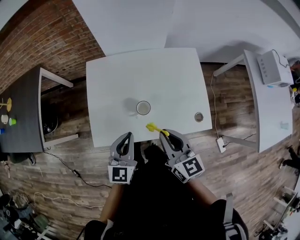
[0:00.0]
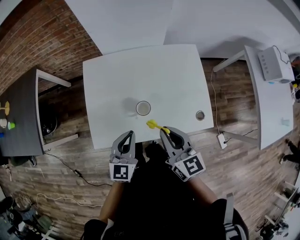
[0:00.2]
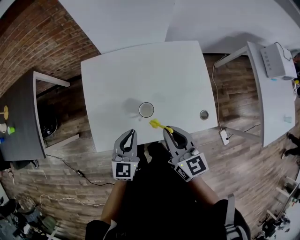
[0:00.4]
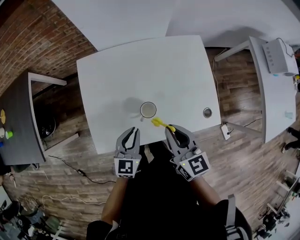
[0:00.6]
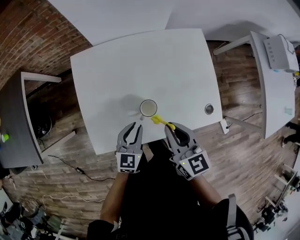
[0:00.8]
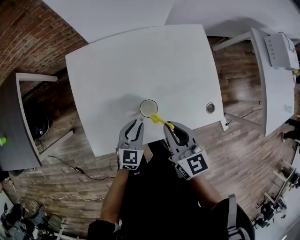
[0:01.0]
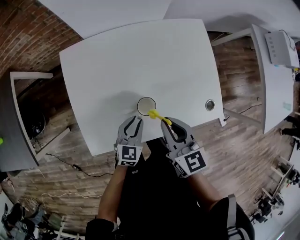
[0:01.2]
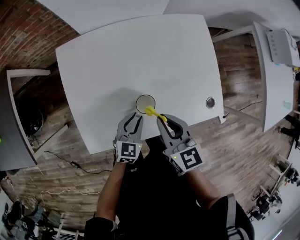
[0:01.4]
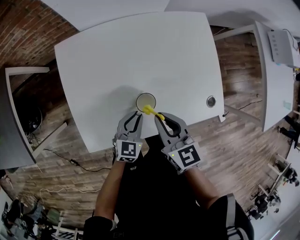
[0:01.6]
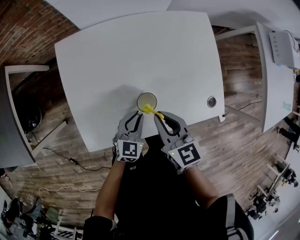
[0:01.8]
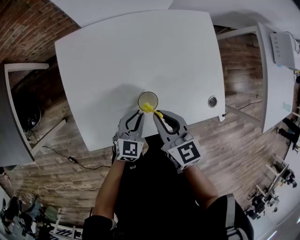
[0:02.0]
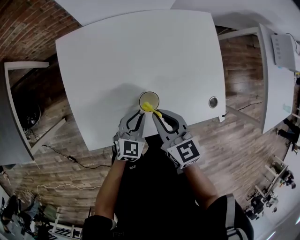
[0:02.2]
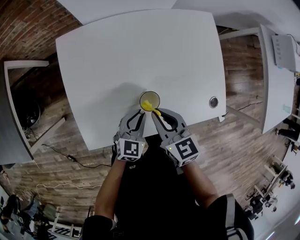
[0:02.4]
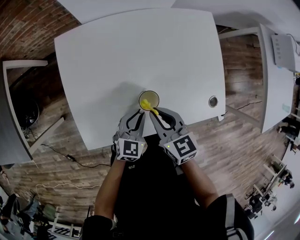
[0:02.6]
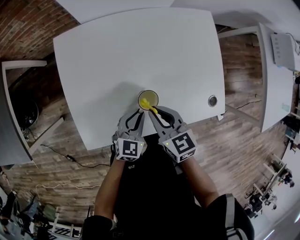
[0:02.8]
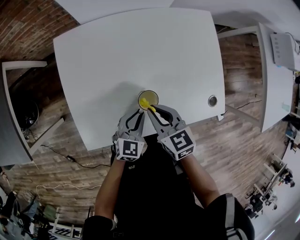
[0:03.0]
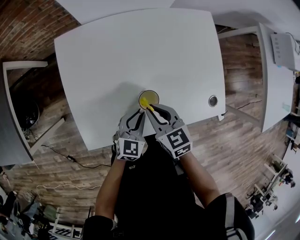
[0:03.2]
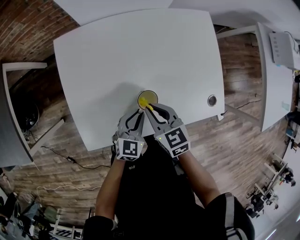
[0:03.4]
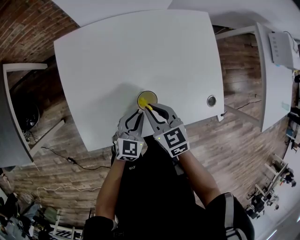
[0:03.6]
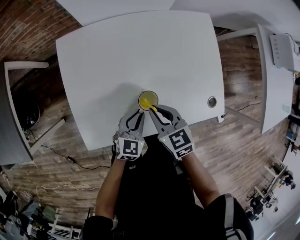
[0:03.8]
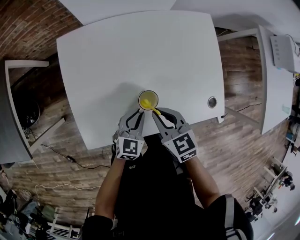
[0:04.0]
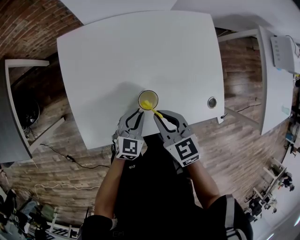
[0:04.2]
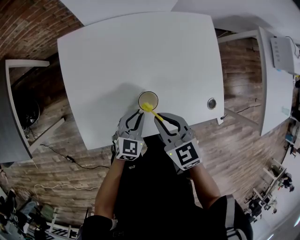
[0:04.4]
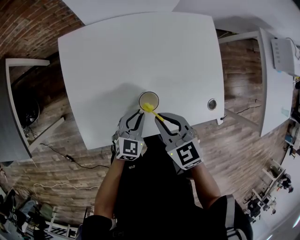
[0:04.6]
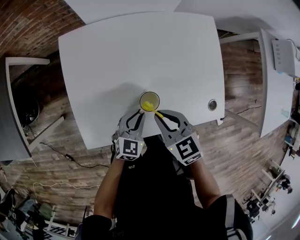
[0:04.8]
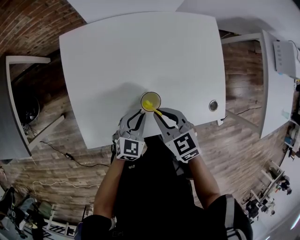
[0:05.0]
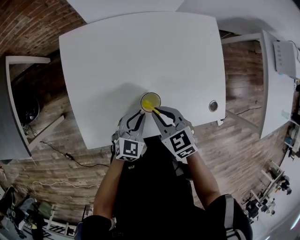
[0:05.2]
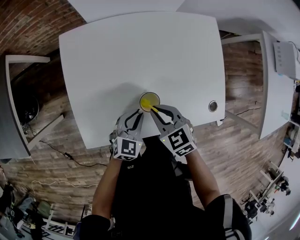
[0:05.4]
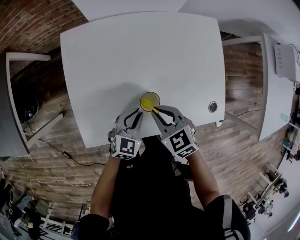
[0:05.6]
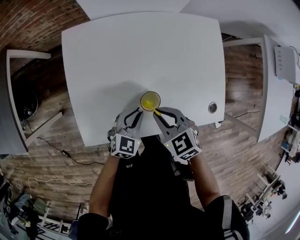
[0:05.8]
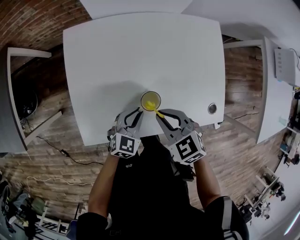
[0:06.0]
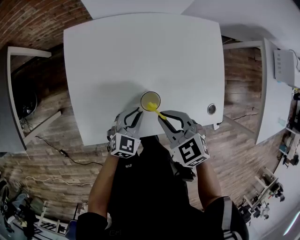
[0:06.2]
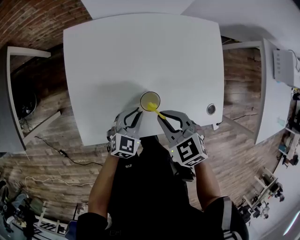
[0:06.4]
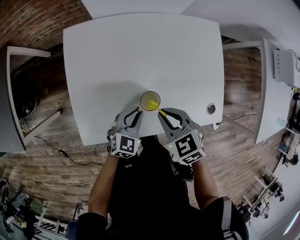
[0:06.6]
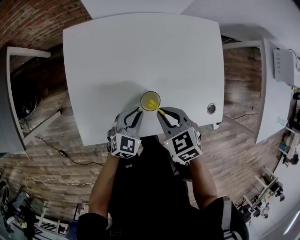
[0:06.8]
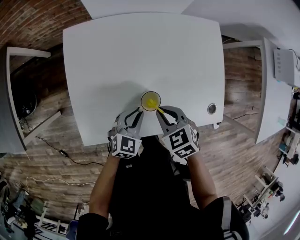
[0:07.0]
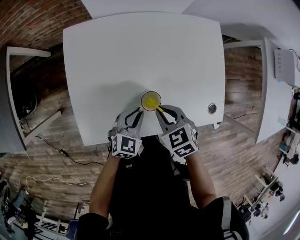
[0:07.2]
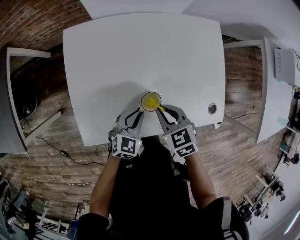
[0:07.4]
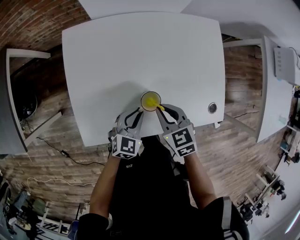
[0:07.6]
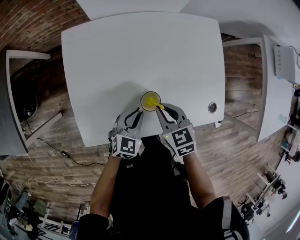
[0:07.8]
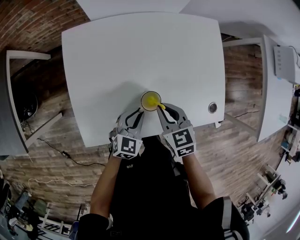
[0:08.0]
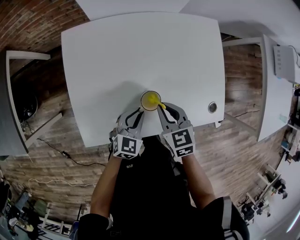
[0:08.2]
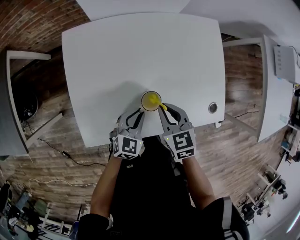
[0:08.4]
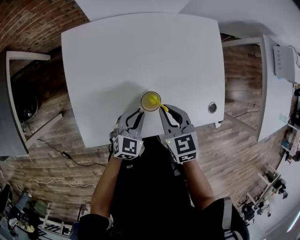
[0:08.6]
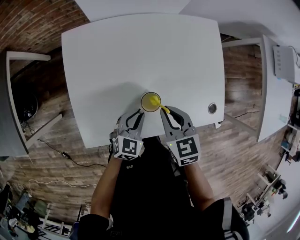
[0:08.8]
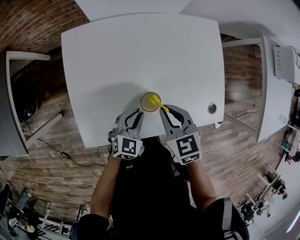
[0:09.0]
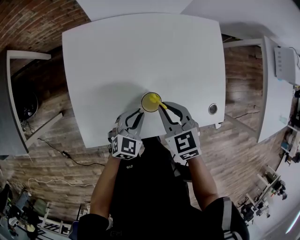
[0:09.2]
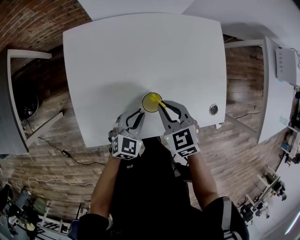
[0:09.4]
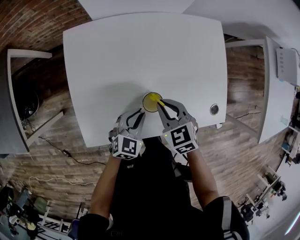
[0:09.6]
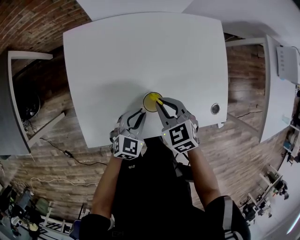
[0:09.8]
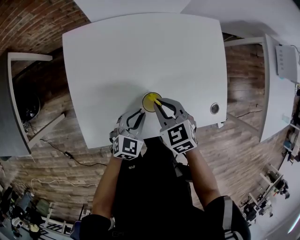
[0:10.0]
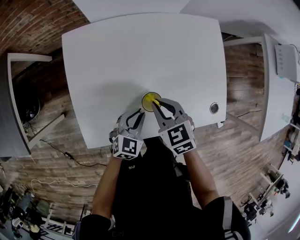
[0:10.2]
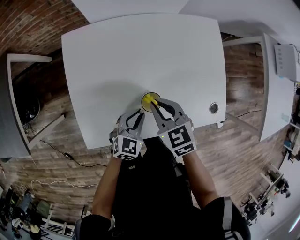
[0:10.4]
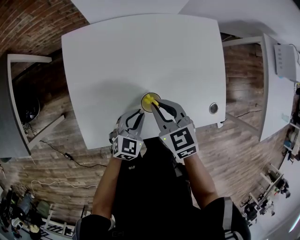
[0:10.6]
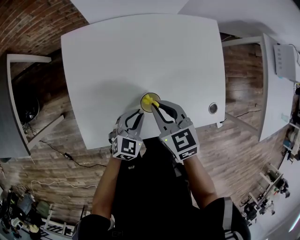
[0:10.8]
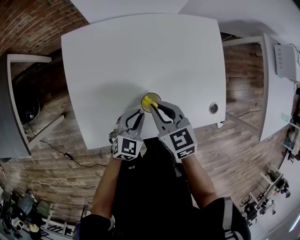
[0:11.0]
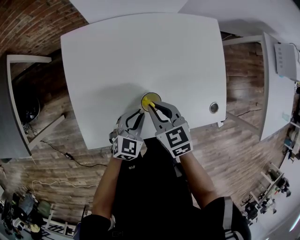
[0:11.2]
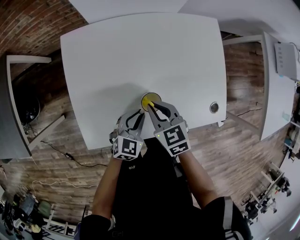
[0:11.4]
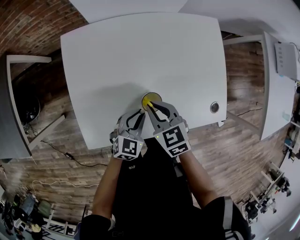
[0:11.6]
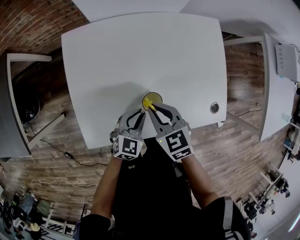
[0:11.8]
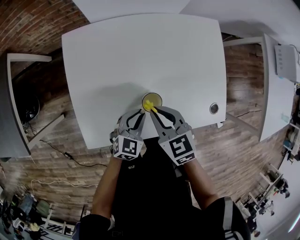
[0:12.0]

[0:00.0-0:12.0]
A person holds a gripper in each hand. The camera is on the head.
0:00.0 to 0:01.6: The left gripper is displaced downward by about 20 cm, and turns by about 30 degrees. The right gripper travels downward and forward by roughly 15 cm.
0:01.6 to 0:03.0: The right gripper travels downward by approximately 5 cm.
0:03.0 to 0:04.4: There are only small adjustments of the grippers.
0:04.4 to 0:06.0: There are only small adjustments of the grippers.
0:06.0 to 0:07.6: The grippers make only small movements.
0:07.6 to 0:10.4: The grippers make only small movements.
0:10.4 to 0:12.0: There are only small adjustments of the grippers.

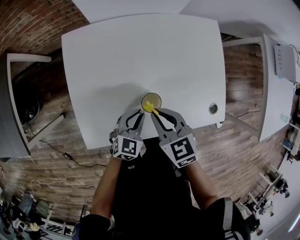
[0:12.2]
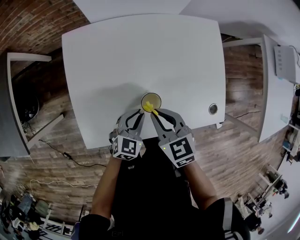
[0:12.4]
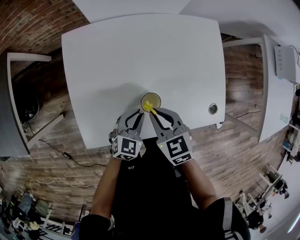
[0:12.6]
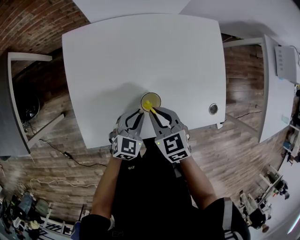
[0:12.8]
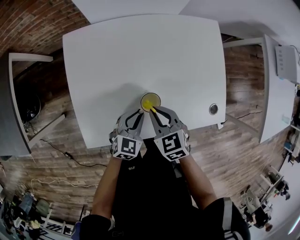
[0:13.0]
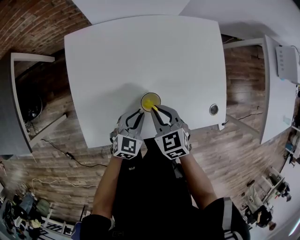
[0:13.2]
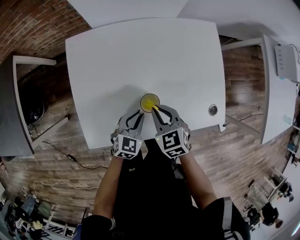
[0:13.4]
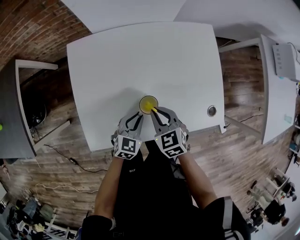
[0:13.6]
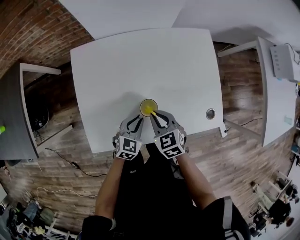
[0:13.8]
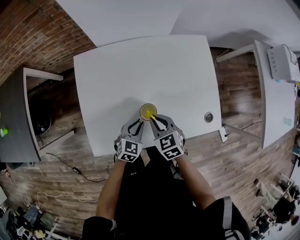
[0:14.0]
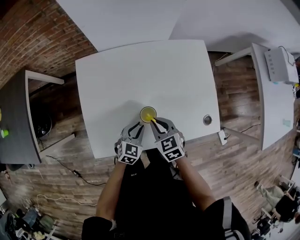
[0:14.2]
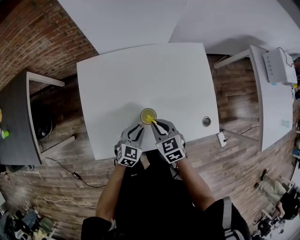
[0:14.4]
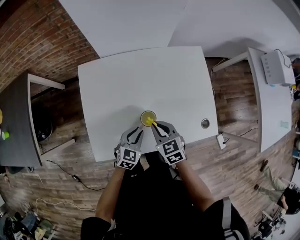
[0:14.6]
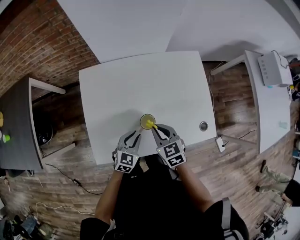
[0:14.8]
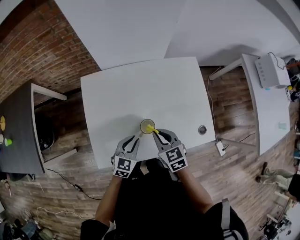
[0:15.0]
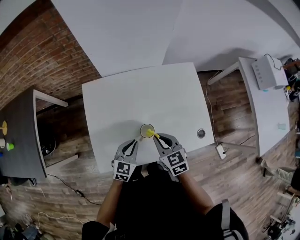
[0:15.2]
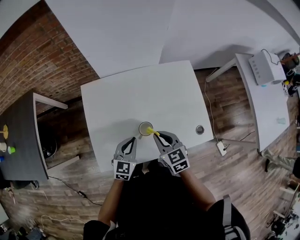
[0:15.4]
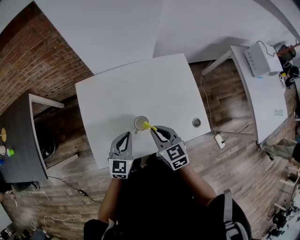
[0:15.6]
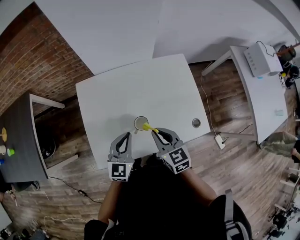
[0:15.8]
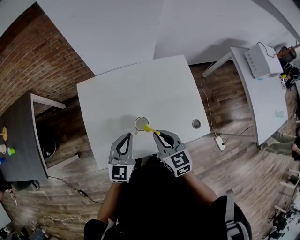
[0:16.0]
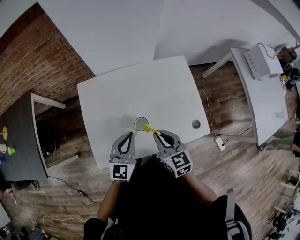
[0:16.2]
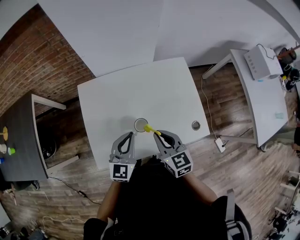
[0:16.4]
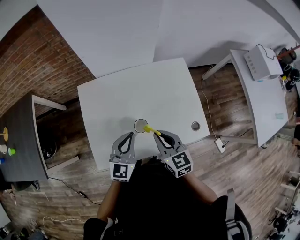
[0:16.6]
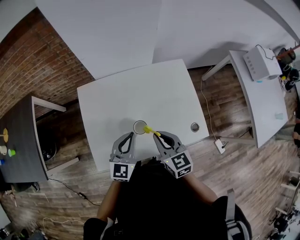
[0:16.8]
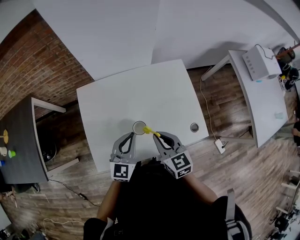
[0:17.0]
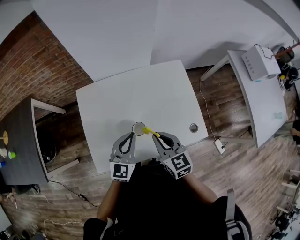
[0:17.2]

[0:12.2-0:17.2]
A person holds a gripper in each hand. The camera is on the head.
0:12.2 to 0:13.8: The right gripper heads downward, covering some 5 cm.
0:13.8 to 0:15.6: The two grippers go approximately 15 cm upward.
0:15.6 to 0:17.2: The right gripper shifts by about 5 cm. The left gripper goes some 5 cm upward.

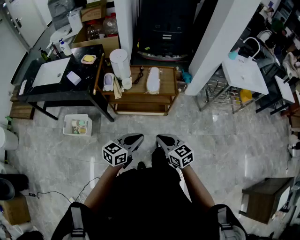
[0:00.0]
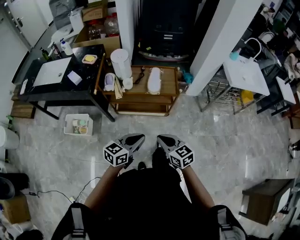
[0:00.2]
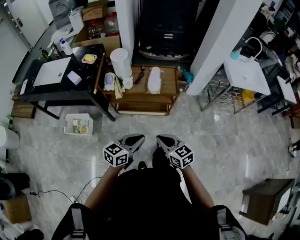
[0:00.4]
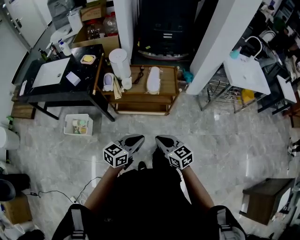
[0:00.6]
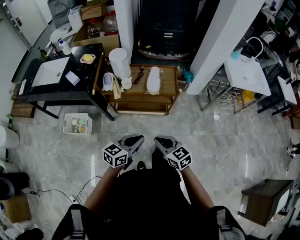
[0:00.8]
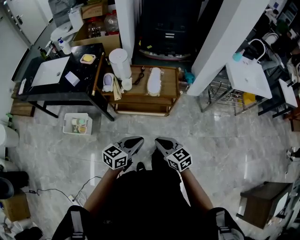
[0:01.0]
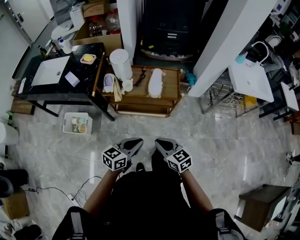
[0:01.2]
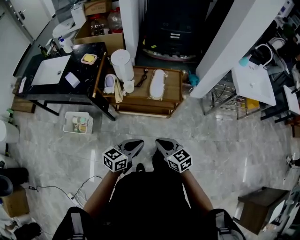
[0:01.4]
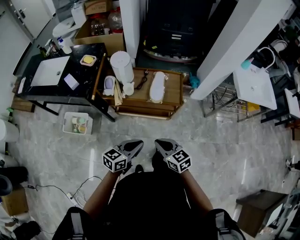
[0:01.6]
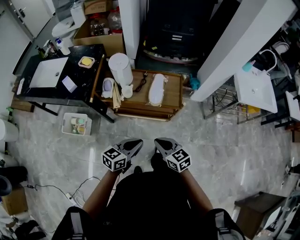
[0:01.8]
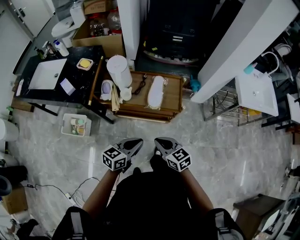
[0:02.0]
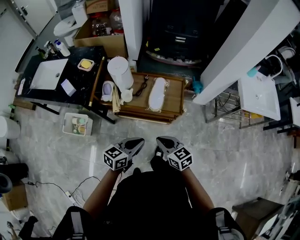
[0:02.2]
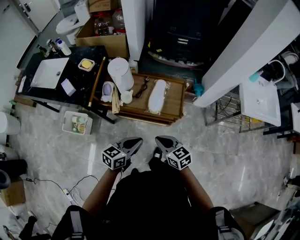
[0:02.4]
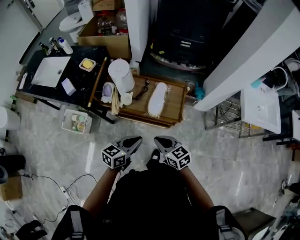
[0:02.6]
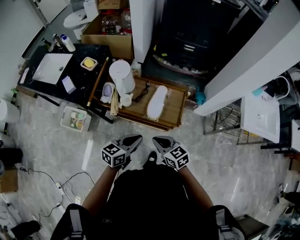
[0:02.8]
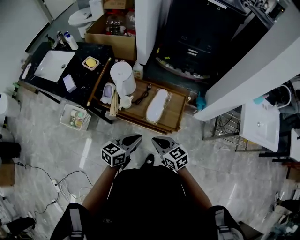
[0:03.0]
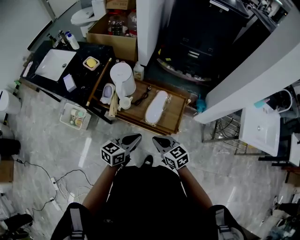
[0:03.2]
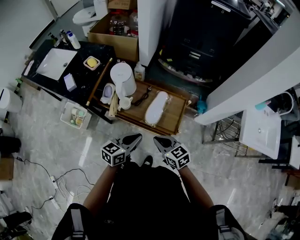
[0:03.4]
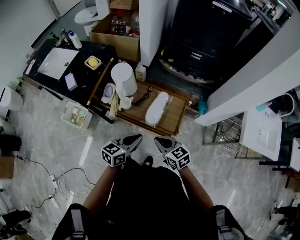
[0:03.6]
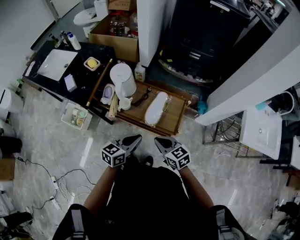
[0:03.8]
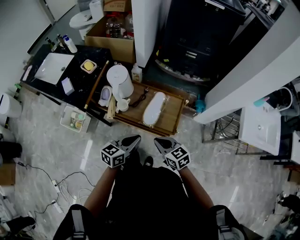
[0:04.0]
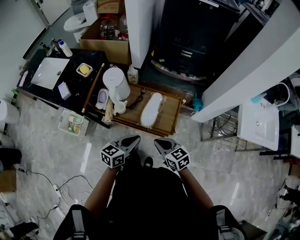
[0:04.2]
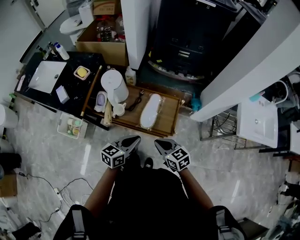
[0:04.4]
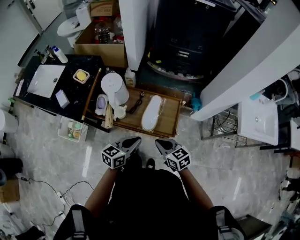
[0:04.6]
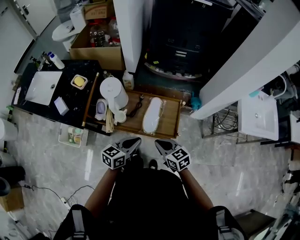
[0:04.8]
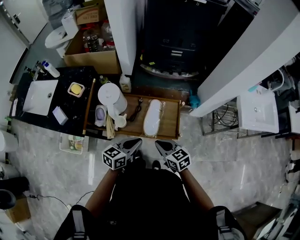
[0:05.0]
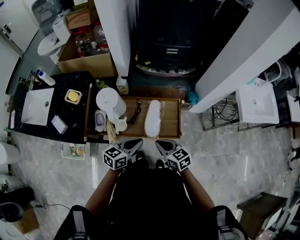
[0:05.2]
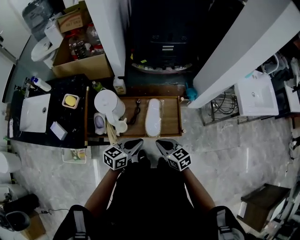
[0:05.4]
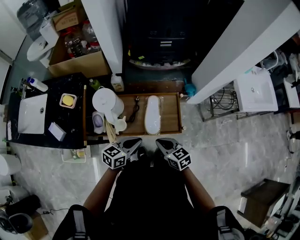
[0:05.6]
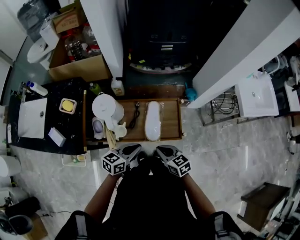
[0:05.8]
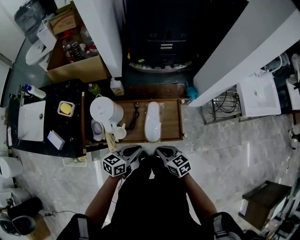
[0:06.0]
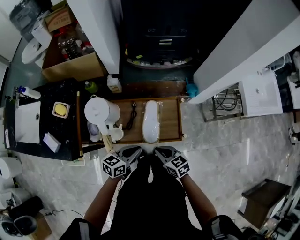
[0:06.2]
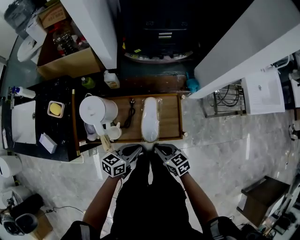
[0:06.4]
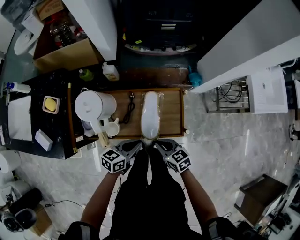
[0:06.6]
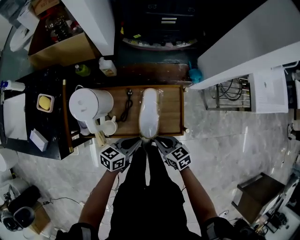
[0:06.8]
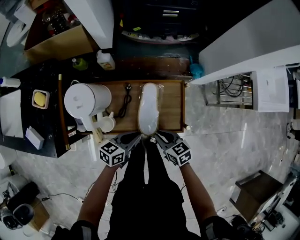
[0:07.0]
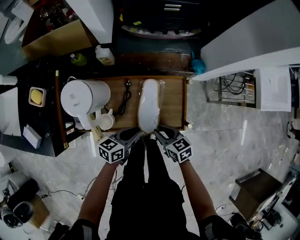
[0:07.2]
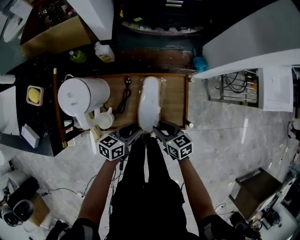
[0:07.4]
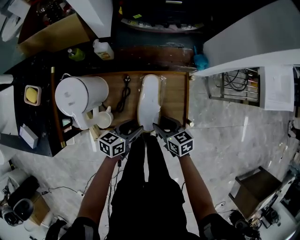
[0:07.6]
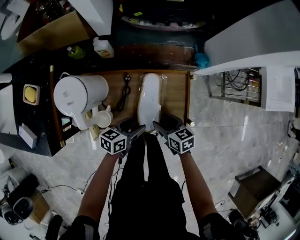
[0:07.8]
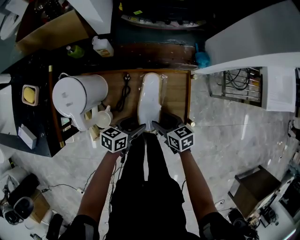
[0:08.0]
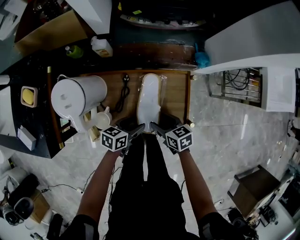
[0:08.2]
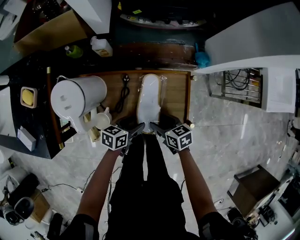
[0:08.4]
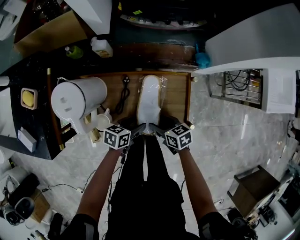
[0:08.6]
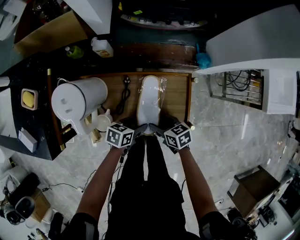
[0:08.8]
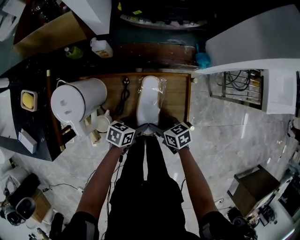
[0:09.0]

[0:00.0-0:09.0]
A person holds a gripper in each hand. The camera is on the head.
0:00.0 to 0:01.6: Both grippers move forward, approximately 10 cm.
0:01.6 to 0:03.0: The grippers both shift forward by some 15 cm.
0:03.0 to 0:04.4: The right gripper shifts by some 5 cm.
0:04.4 to 0:06.0: Both grippers move forward, to the left and downward, roughly 10 cm. The left gripper swivels approximately 20 degrees.
0:06.0 to 0:07.6: The left gripper moves downward, approximately 15 cm, and opens its fingers, while the right gripper travels downward and forward by some 15 cm, and opens its fingers.
0:07.6 to 0:09.0: The left gripper shifts some 5 cm downward.
